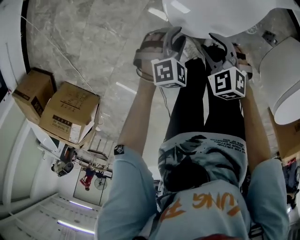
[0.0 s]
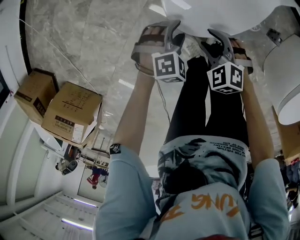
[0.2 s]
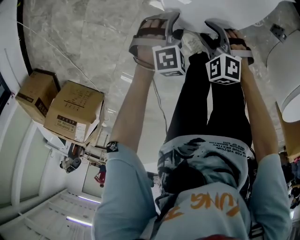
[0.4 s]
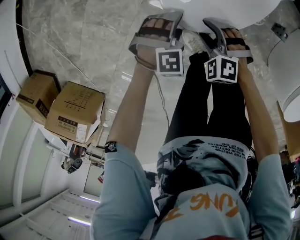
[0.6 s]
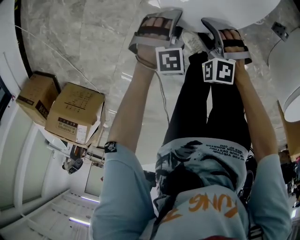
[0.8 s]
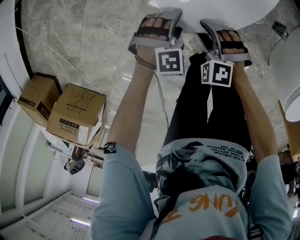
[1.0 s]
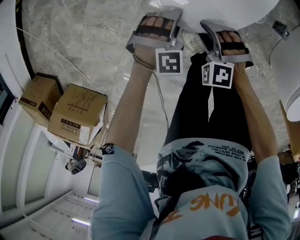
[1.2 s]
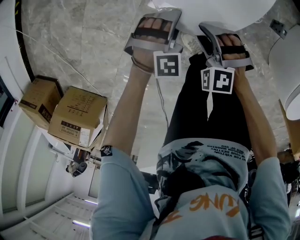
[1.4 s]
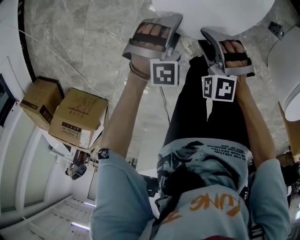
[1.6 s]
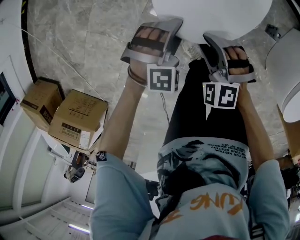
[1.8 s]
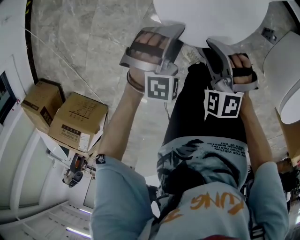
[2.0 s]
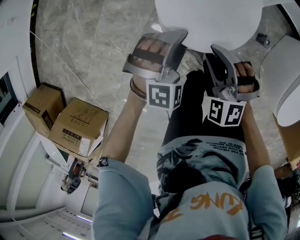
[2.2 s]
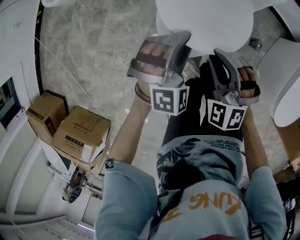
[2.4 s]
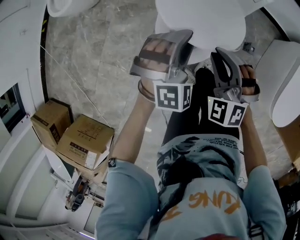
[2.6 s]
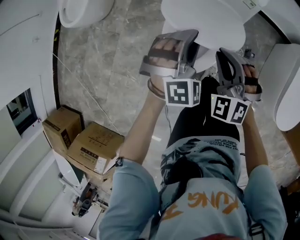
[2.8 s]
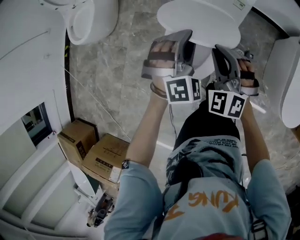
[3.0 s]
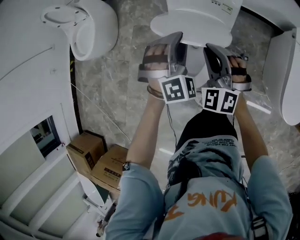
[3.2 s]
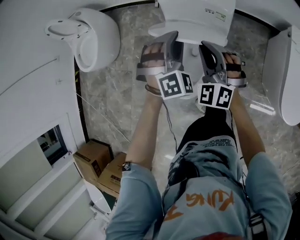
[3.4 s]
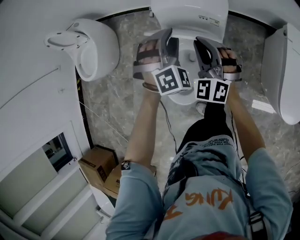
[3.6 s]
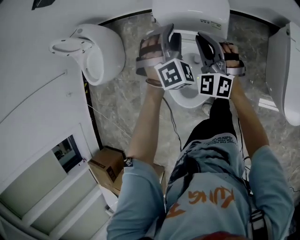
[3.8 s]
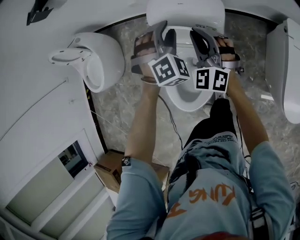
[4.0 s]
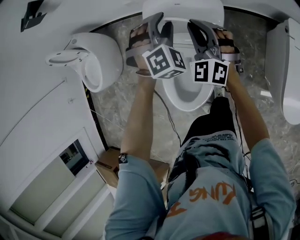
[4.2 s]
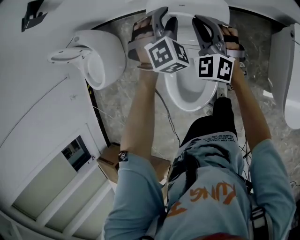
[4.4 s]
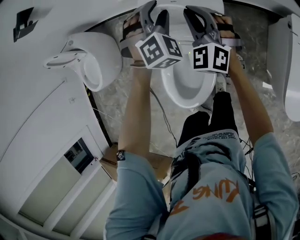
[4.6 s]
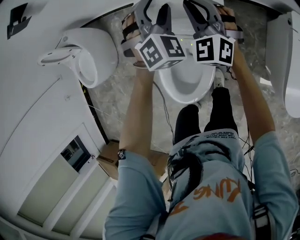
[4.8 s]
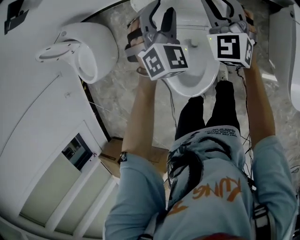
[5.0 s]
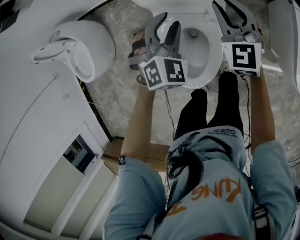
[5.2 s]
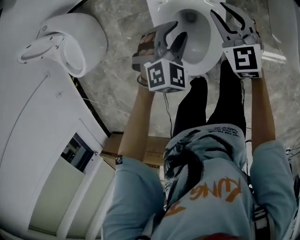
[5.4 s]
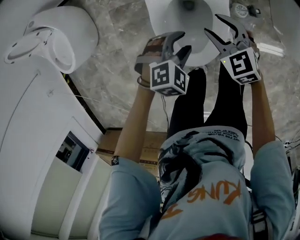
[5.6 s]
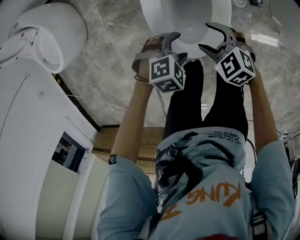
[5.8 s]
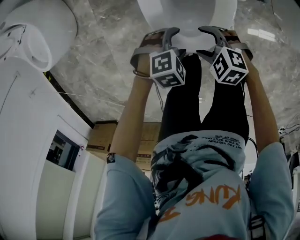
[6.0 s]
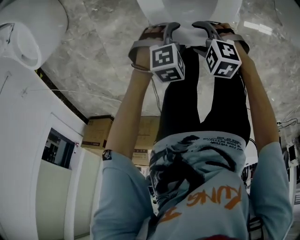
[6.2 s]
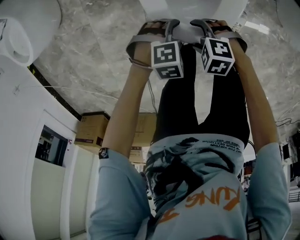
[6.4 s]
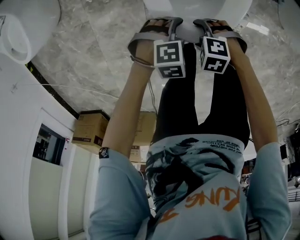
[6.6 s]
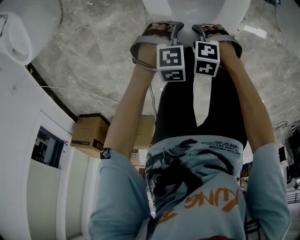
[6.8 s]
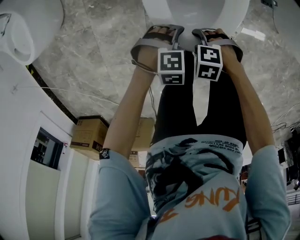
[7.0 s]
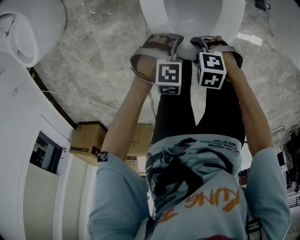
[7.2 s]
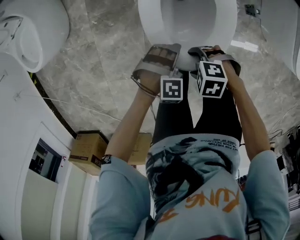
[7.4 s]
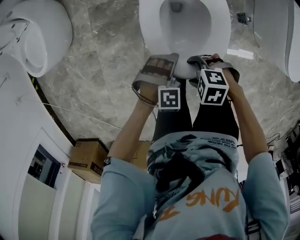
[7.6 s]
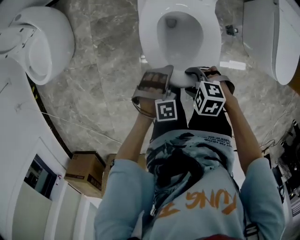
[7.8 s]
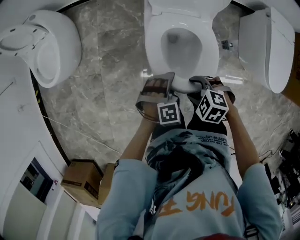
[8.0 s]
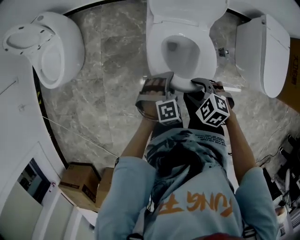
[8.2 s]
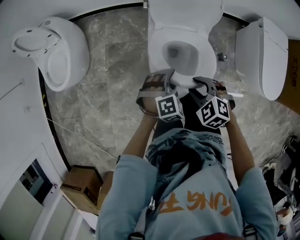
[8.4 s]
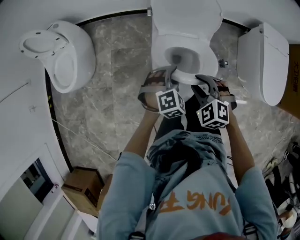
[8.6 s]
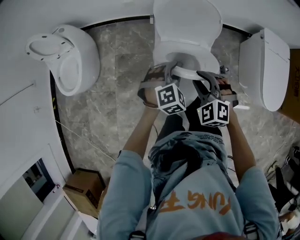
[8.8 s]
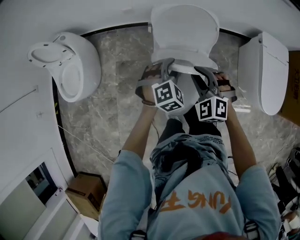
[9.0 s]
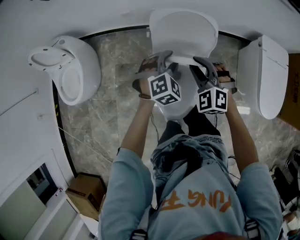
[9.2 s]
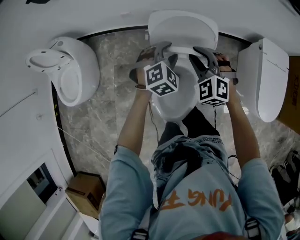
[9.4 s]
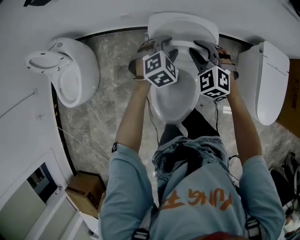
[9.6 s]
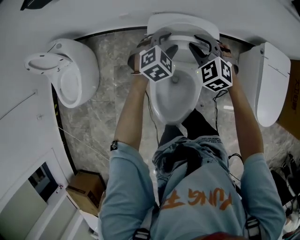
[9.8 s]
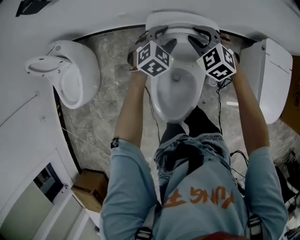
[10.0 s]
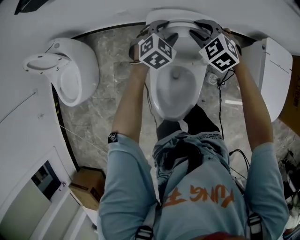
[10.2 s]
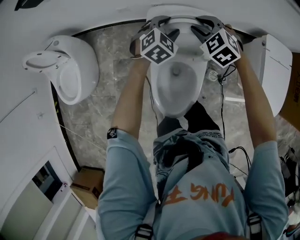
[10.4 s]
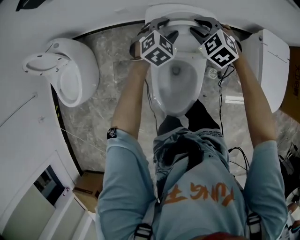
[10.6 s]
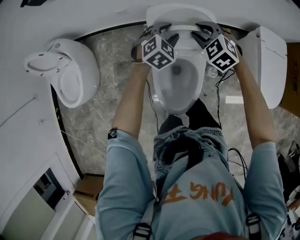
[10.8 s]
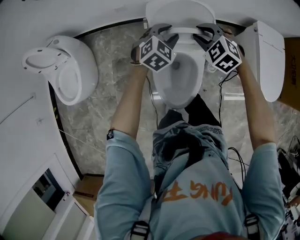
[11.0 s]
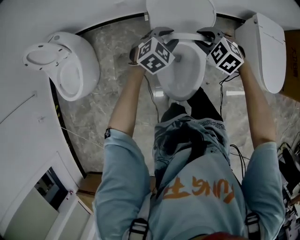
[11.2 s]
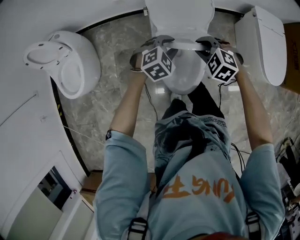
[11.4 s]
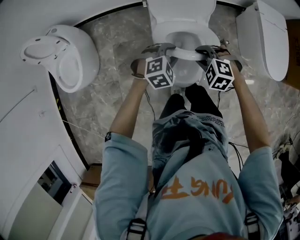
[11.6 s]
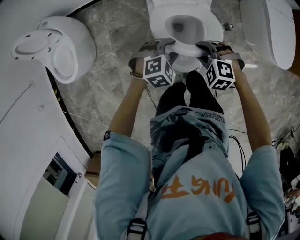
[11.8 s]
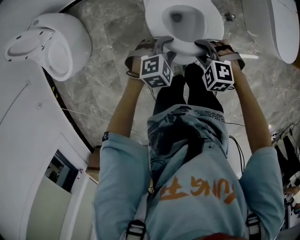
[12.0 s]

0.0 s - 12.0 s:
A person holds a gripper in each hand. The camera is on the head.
0.0 s - 1.6 s: The right gripper goes downward and returns, approximately 10 cm each way, and rotates about 30 degrees; the left gripper swivels some 30 degrees, and opens its fingers.
1.6 s - 3.0 s: The grippers both shift upward, forward and to the right by roughly 35 cm. The right gripper turns by approximately 40 degrees, and closes its fingers. The left gripper rotates some 30 degrees, and closes its fingers.
3.0 s - 4.4 s: The two grippers go approximately 30 cm forward and to the right. The right gripper changes its angle by roughly 20 degrees.
4.4 s - 6.0 s: The pair of grippers is taken roughly 50 cm. The right gripper tilts its fingers approximately 40 degrees downward, and opens up. The left gripper turns by about 50 degrees, and opens its fingers.
6.0 s - 7.6 s: The two grippers go about 5 cm upward. The right gripper changes its angle by about 20 degrees; the left gripper turns by roughly 30 degrees.
7.6 s - 9.0 s: The grippers both shift upward by roughly 30 cm. The right gripper rotates about 60 degrees, and closes up; the left gripper turns by roughly 30 degrees, and closes.
9.0 s - 10.4 s: The grippers both shift forward by roughly 25 cm.
10.4 s - 12.0 s: The two grippers travel together, backward, about 40 cm. The left gripper turns by some 30 degrees. The right gripper turns by approximately 20 degrees.

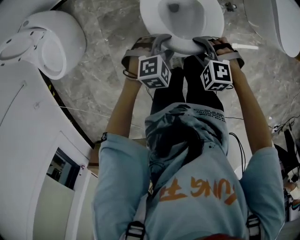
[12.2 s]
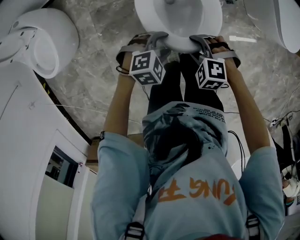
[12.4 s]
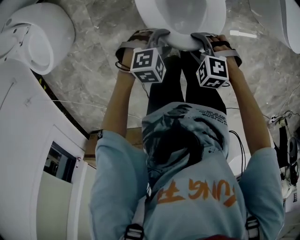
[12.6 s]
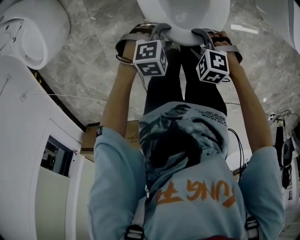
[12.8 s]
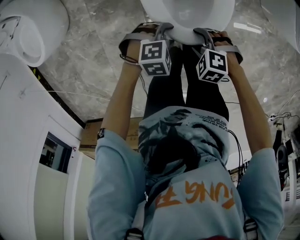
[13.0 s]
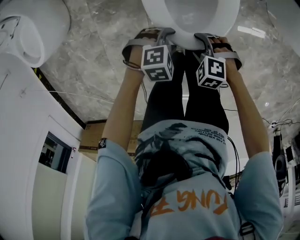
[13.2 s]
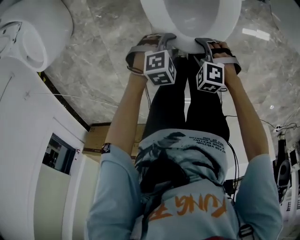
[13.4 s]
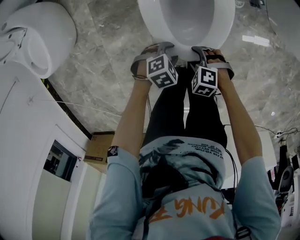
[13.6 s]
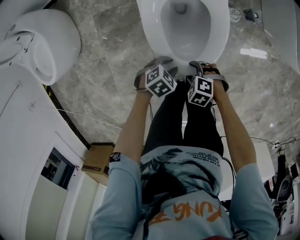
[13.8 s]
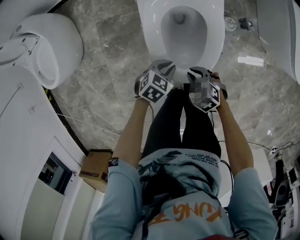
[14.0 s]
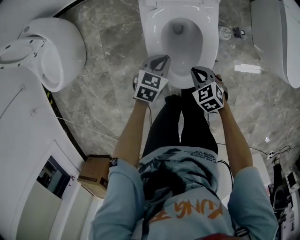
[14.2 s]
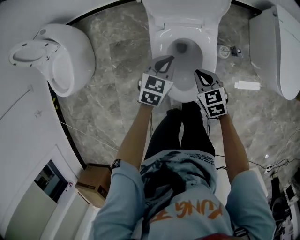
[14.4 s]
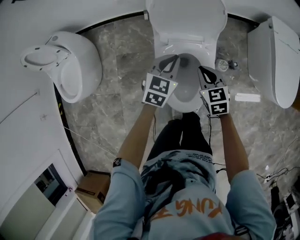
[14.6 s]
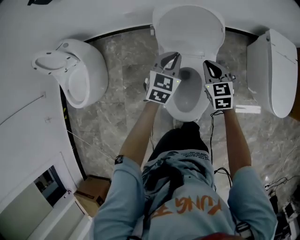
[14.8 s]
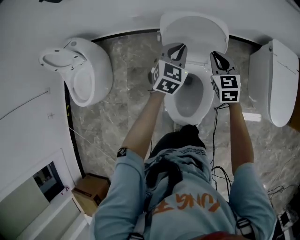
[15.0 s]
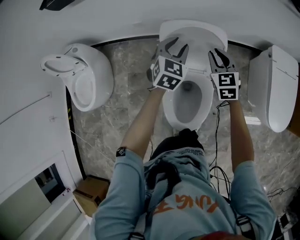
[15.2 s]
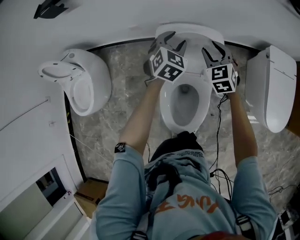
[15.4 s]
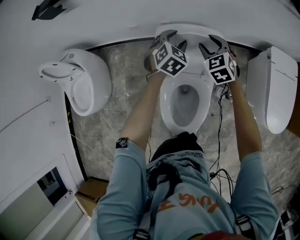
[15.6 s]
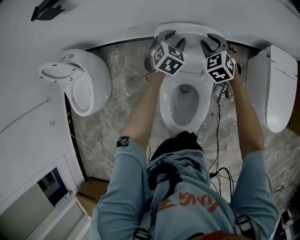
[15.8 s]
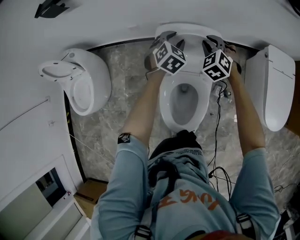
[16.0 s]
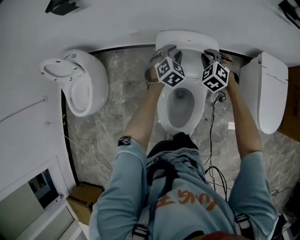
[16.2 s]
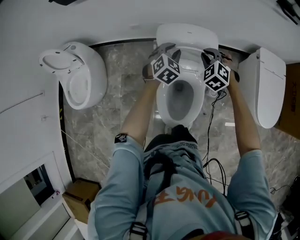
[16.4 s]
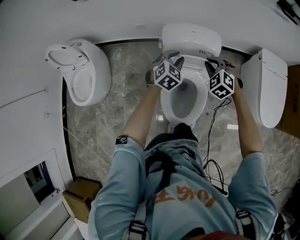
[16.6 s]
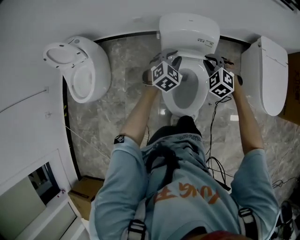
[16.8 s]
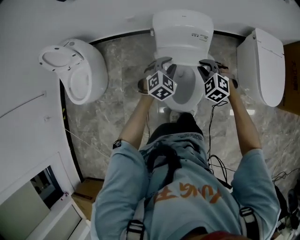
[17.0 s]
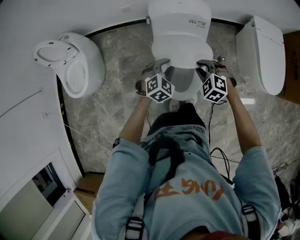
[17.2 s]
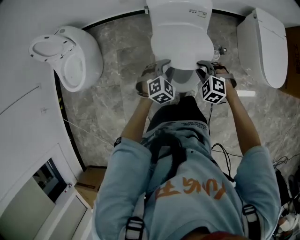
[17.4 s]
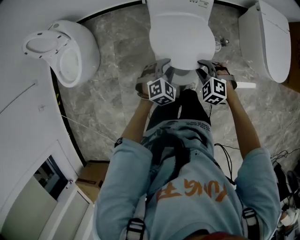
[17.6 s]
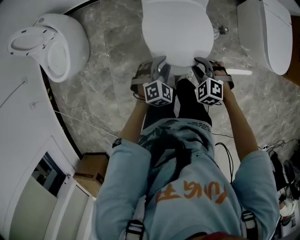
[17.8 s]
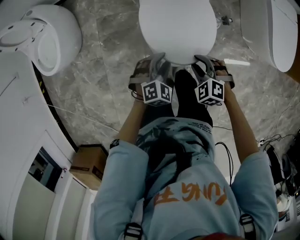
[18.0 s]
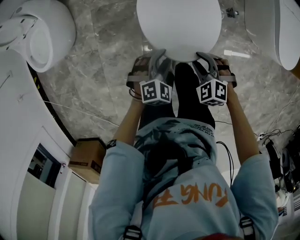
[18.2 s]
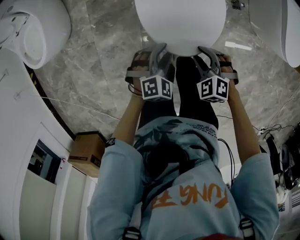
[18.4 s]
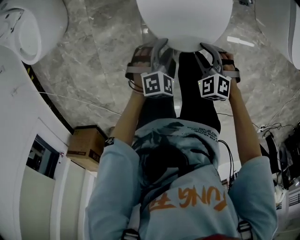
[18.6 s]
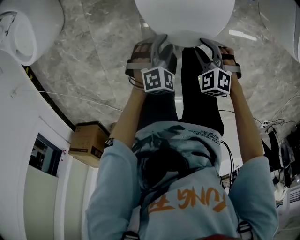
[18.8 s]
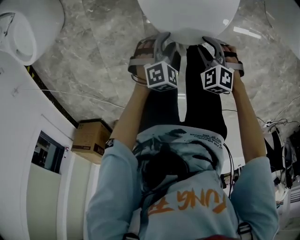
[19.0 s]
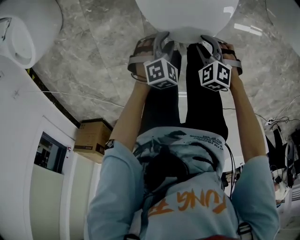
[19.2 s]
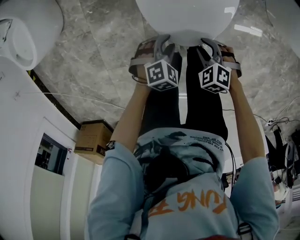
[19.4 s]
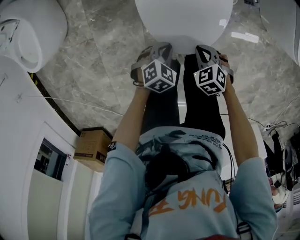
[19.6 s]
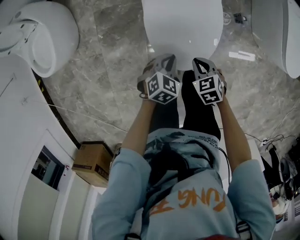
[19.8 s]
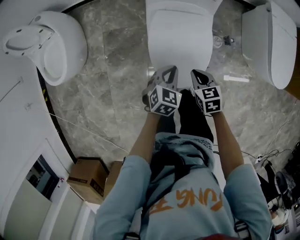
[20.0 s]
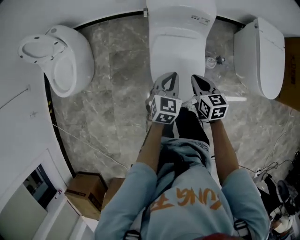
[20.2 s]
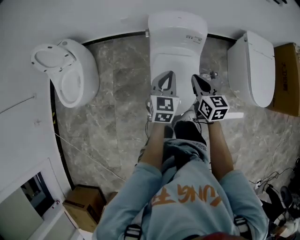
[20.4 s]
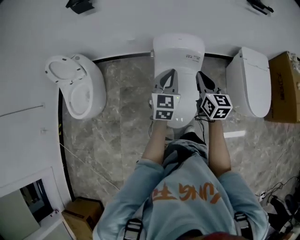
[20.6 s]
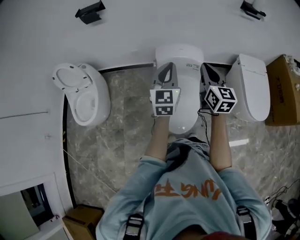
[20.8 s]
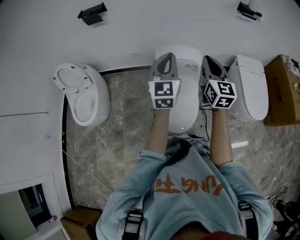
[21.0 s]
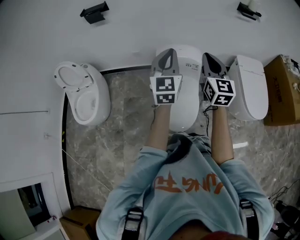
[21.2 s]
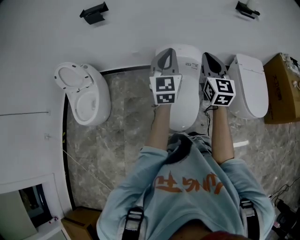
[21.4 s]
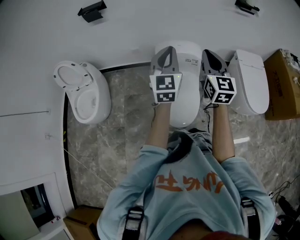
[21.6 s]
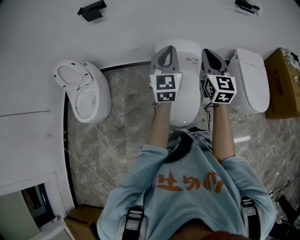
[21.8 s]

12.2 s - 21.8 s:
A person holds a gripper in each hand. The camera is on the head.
12.2 s - 13.8 s: The two grippers go some 25 cm downward. The left gripper turns by some 40 degrees; the right gripper changes its angle by some 20 degrees.
13.8 s - 15.4 s: The two grippers travel together, approximately 50 cm. The right gripper points its fingers about 40 degrees further upward, and closes, then reopens. The left gripper swivels about 50 degrees.
15.4 s - 17.0 s: The two grippers go roughly 25 cm backward. The right gripper changes its angle by approximately 30 degrees.
17.0 s - 18.6 s: The two grippers go some 35 cm downward and backward.
18.6 s - 20.2 s: The two grippers go some 25 cm upward and forward. The right gripper twists some 60 degrees clockwise, seen from behind, and closes up, while the left gripper turns by roughly 40 degrees, and closes.
20.2 s - 21.8 s: The two grippers go some 35 cm upward. The right gripper tilts its fingers roughly 40 degrees upward; the left gripper angles its fingers upward, by approximately 40 degrees.

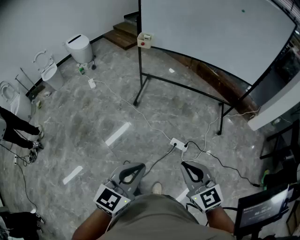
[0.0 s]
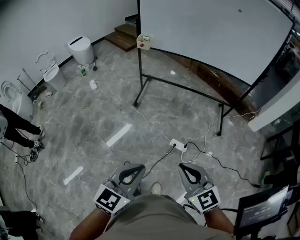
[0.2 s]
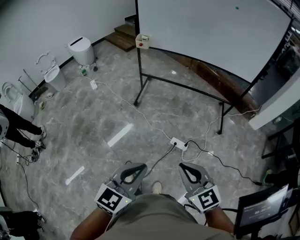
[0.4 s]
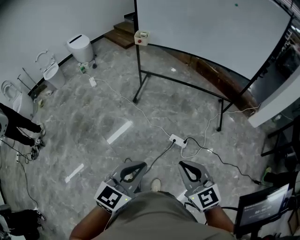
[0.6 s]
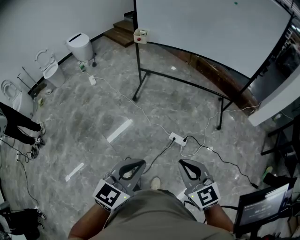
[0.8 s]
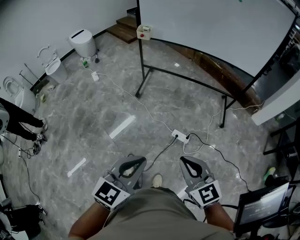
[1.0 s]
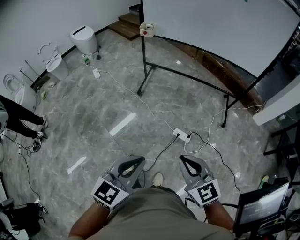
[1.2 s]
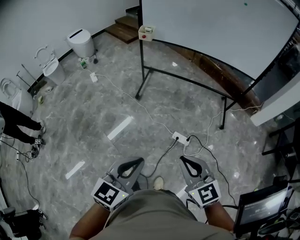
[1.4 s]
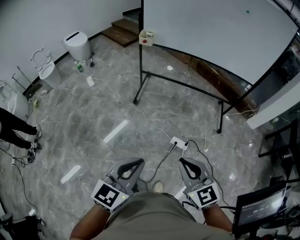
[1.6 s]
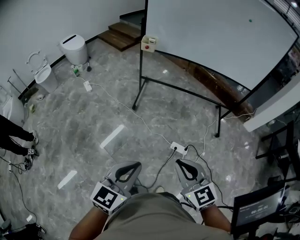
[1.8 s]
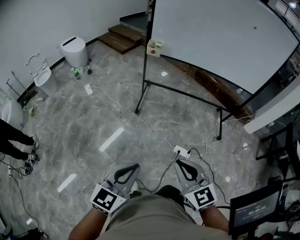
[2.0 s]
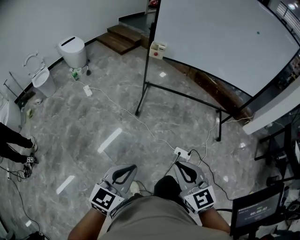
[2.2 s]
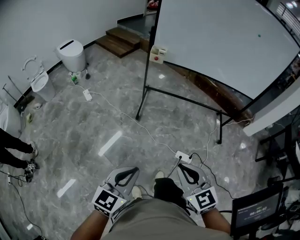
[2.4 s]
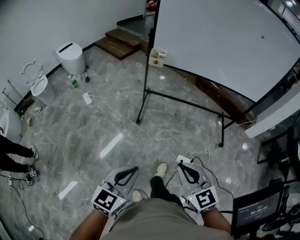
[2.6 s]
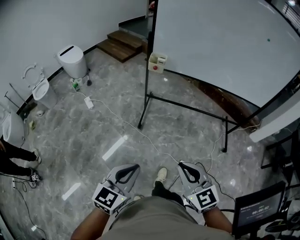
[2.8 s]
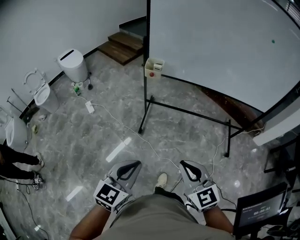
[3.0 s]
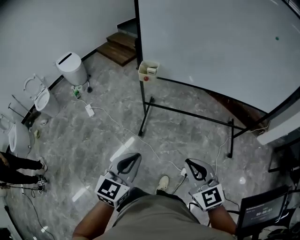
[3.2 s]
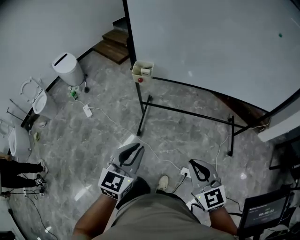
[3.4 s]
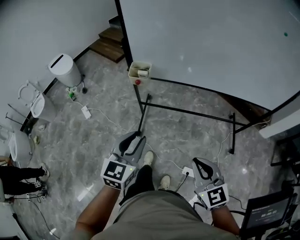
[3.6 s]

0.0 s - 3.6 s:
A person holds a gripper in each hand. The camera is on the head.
0.0 s - 1.8 s: The grippers both shift to the left by some 10 cm.
1.8 s - 3.6 s: The two grippers travel together, forward, some 50 cm.
